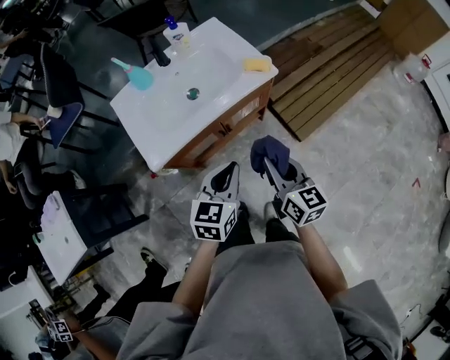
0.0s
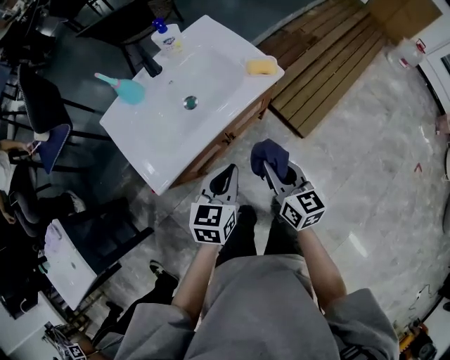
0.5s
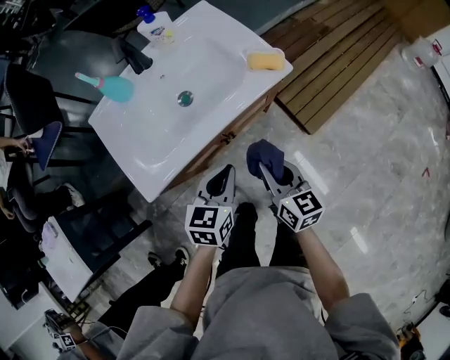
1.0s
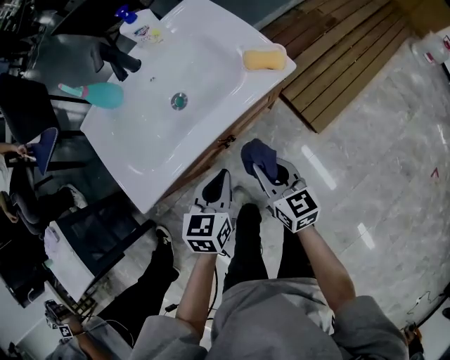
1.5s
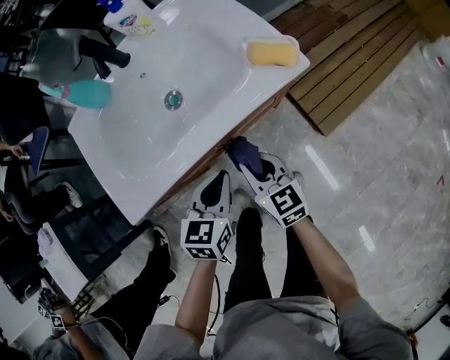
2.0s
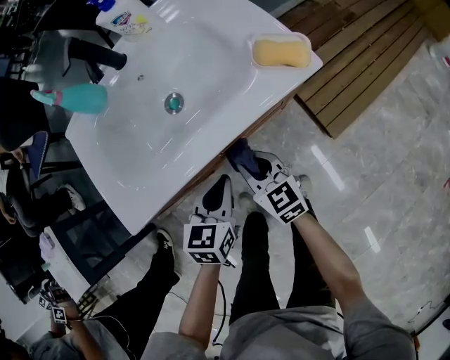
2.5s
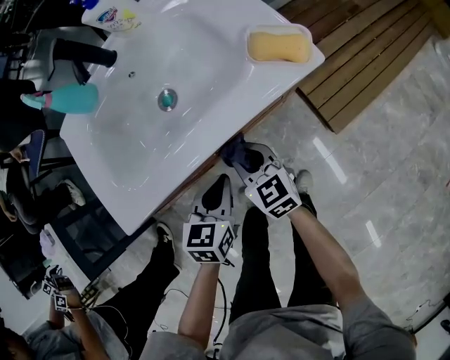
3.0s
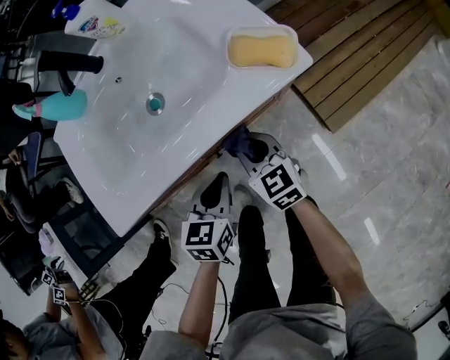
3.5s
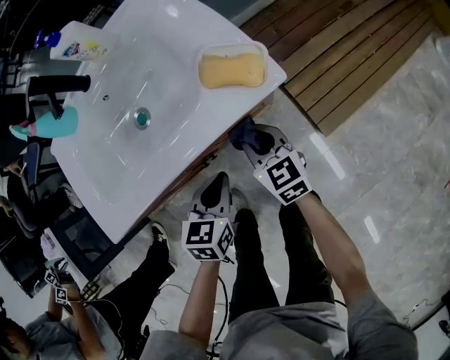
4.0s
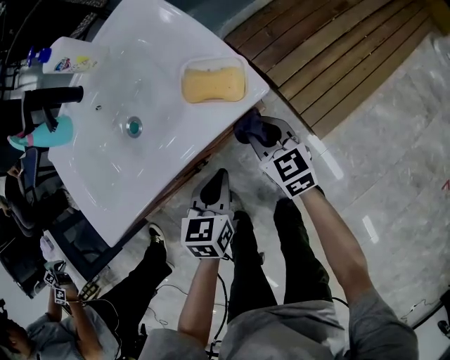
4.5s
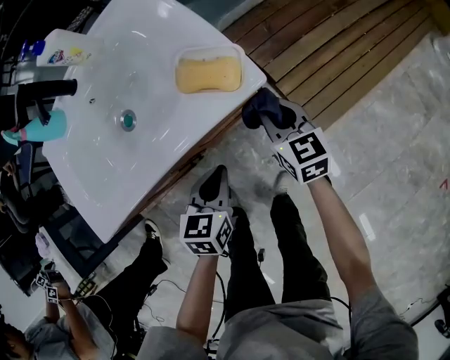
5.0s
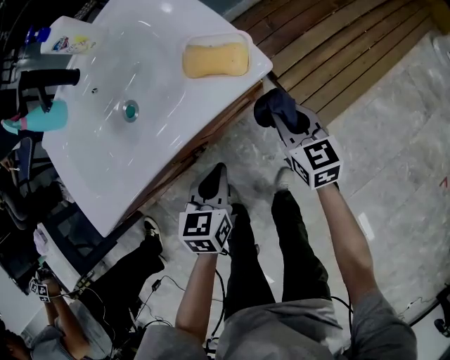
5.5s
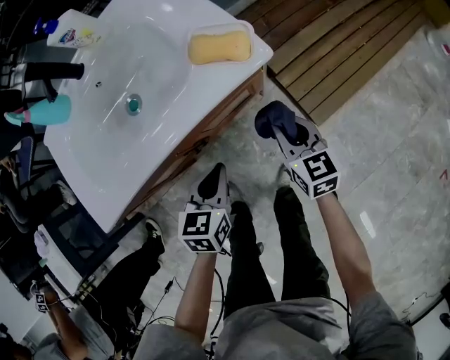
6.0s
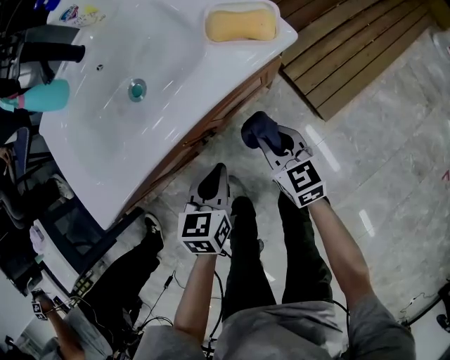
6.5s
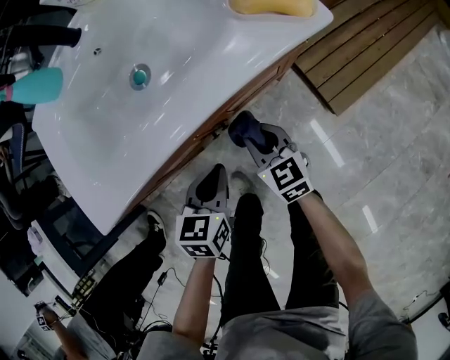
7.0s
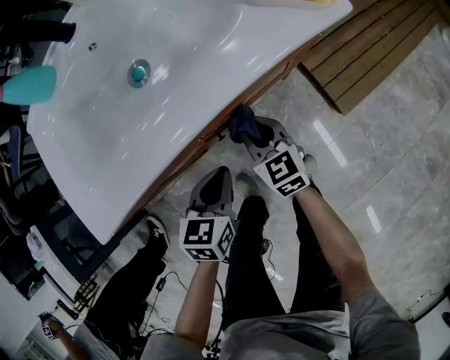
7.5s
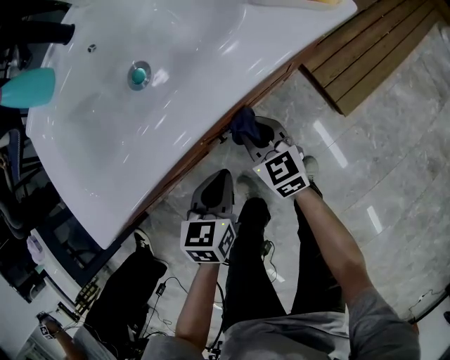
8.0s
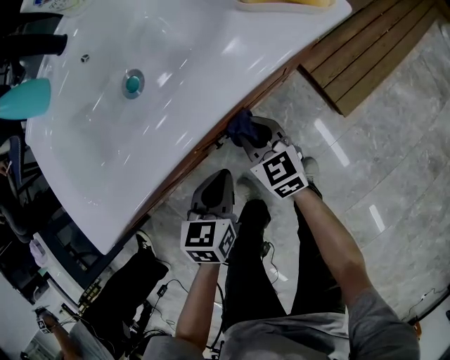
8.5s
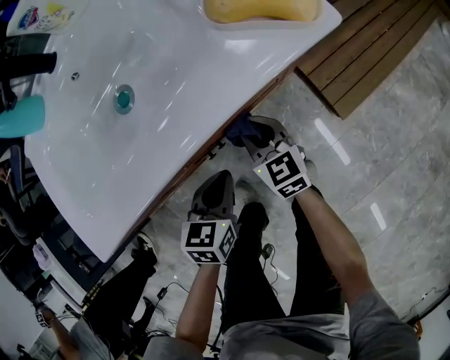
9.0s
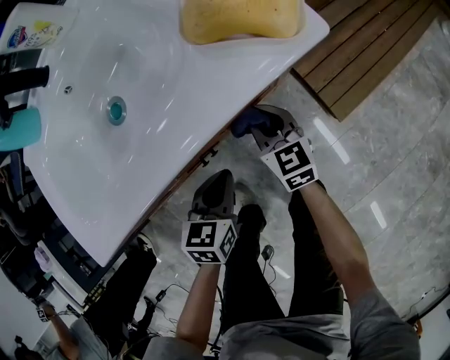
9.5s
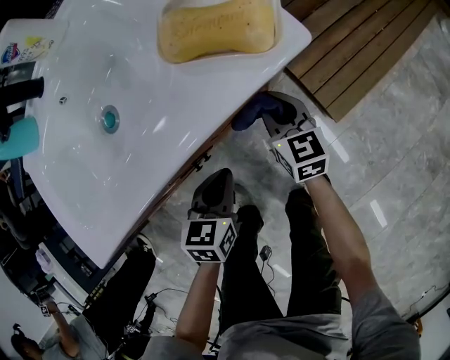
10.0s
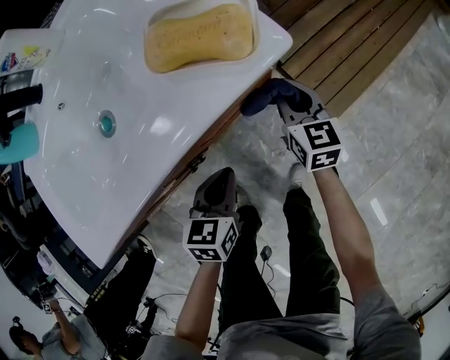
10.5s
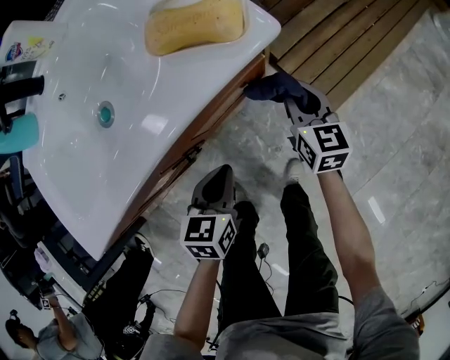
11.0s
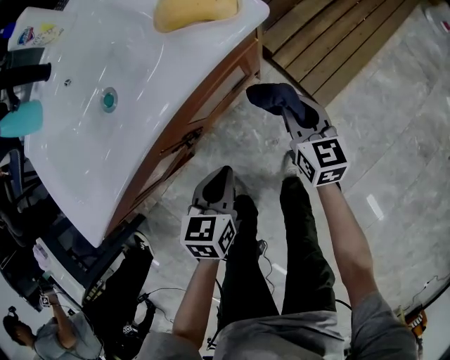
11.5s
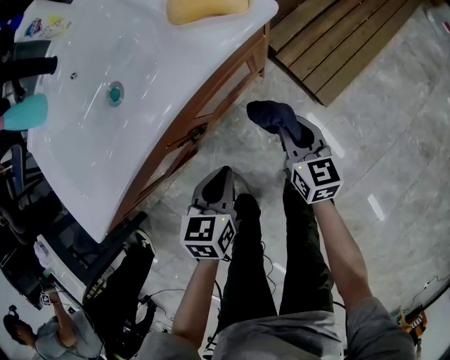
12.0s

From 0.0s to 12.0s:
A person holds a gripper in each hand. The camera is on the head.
From 0.0s to 2.0s: The grippers both shift downward and forward by some 25 cm. The right gripper rotates about 20 degrees.
From 2.0s to 4.0s: The left gripper goes about 10 cm downward and to the right. The right gripper is displaced to the right, forward and downward by roughly 15 cm.
From 4.0s to 6.0s: The right gripper travels to the right by roughly 10 cm.
From 6.0s to 8.0s: The right gripper shifts roughly 25 cm to the left and downward; the left gripper travels to the left and downward by some 15 cm.
From 8.0s to 10.0s: The right gripper moves to the right and forward, roughly 20 cm. The left gripper goes roughly 10 cm to the right and forward.
From 10.0s to 12.0s: The left gripper shifts some 5 cm backward, while the right gripper goes about 15 cm backward and to the right.

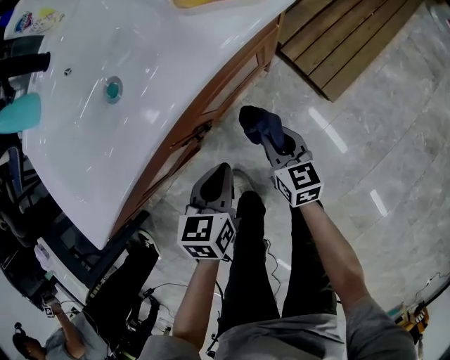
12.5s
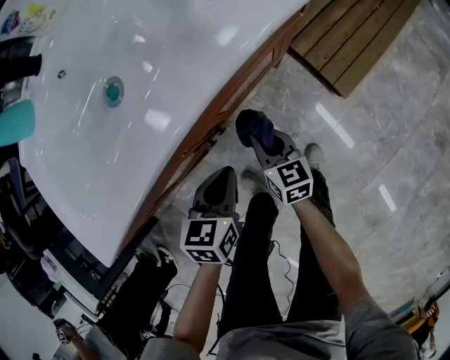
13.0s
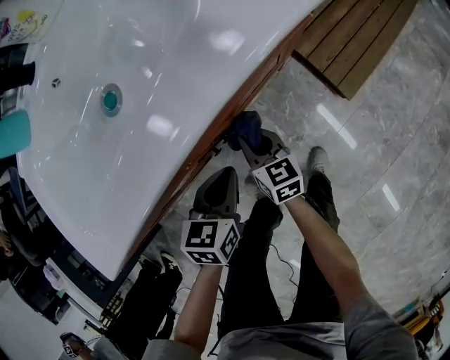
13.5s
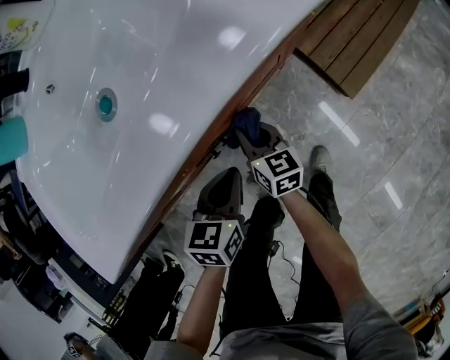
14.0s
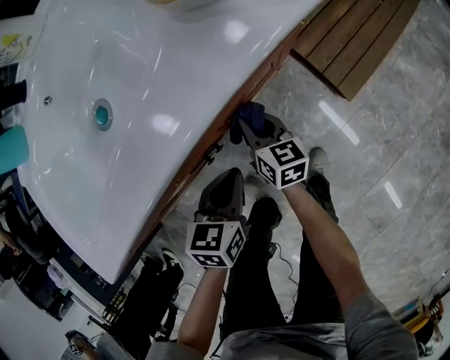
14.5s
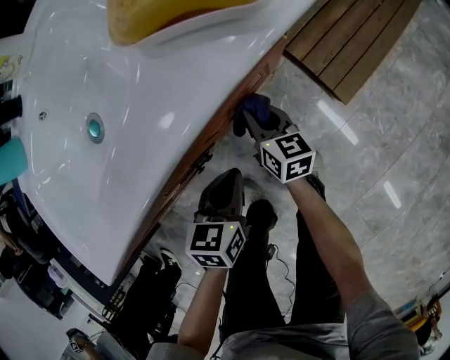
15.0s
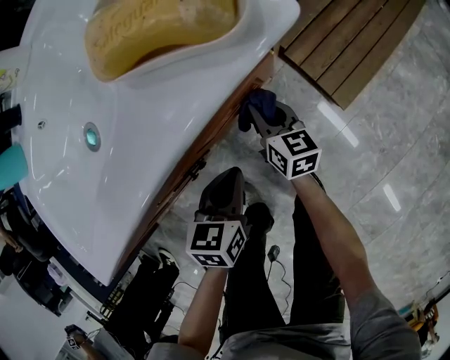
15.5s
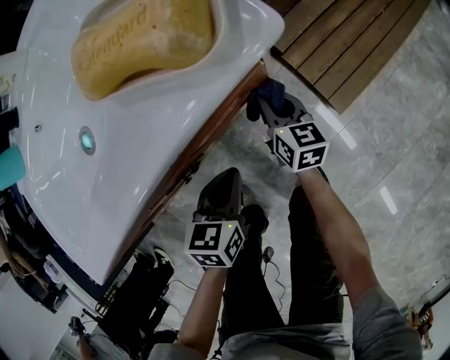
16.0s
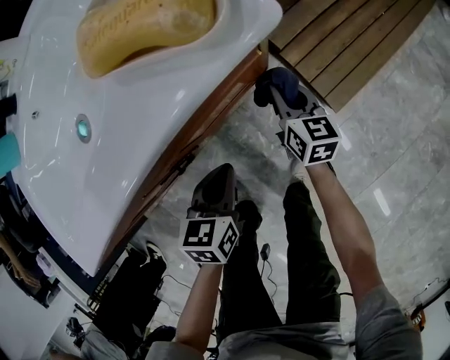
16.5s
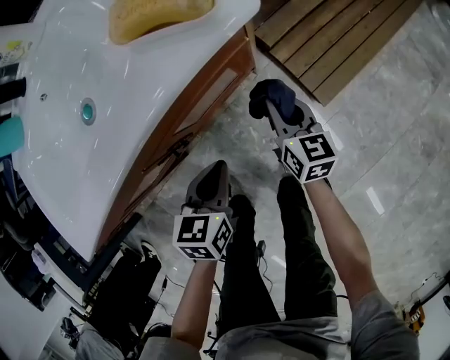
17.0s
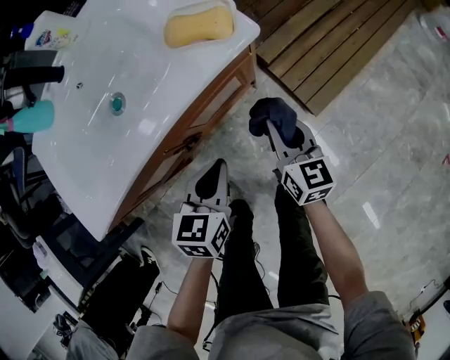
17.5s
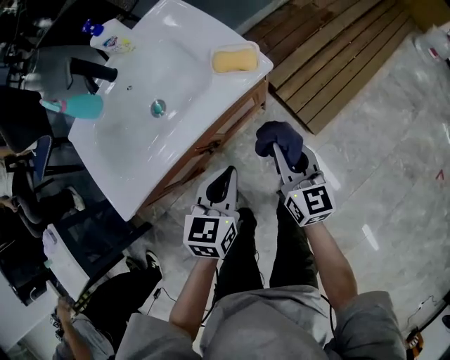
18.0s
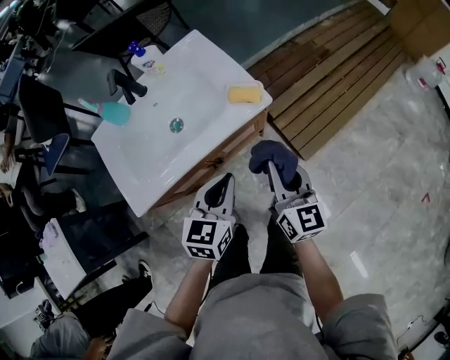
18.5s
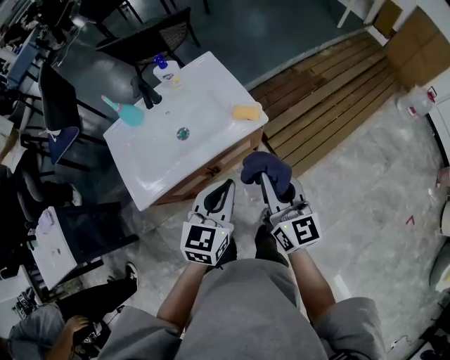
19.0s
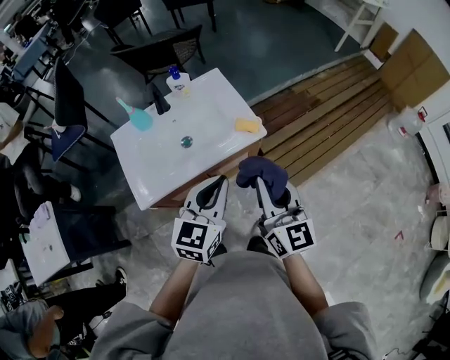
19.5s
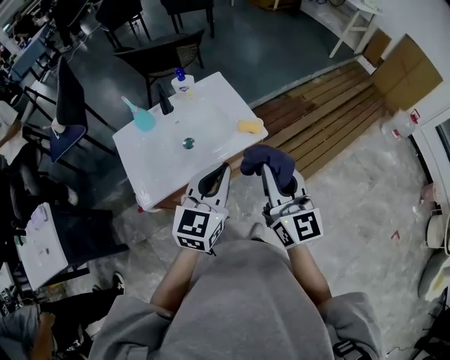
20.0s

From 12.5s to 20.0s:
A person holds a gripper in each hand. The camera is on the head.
From 12.5s to 14.5s: The left gripper goes approximately 5 cm downward, while the right gripper goes approximately 15 cm to the left, forward and downward.
From 14.5s to 16.5s: The left gripper shifts some 5 cm to the right, while the right gripper travels to the right and forward by roughly 20 cm.
From 16.5s to 18.0s: The left gripper travels upward by approximately 25 cm. Meanwhile the right gripper travels upward and backward by about 35 cm.
From 18.0s to 20.0s: The grippers both shift upward by some 35 cm. The right gripper turns by roughly 20 degrees. Meanwhile the left gripper changes its angle by some 30 degrees.

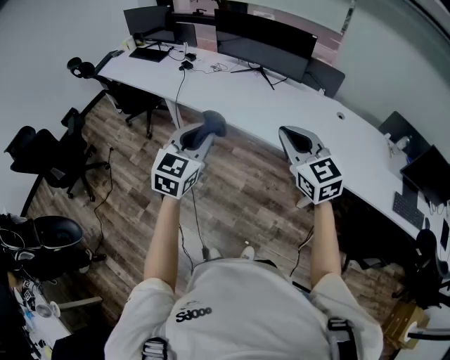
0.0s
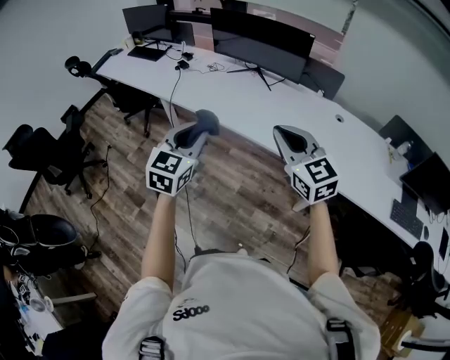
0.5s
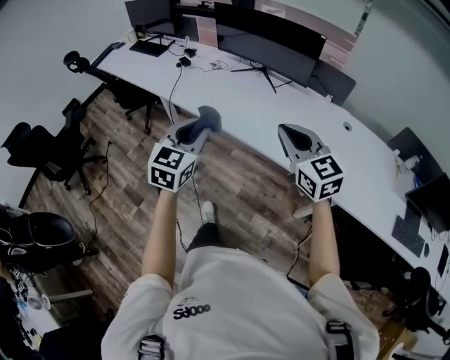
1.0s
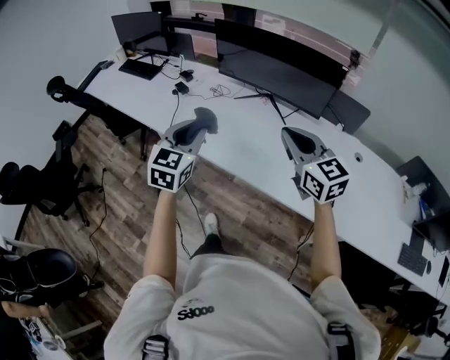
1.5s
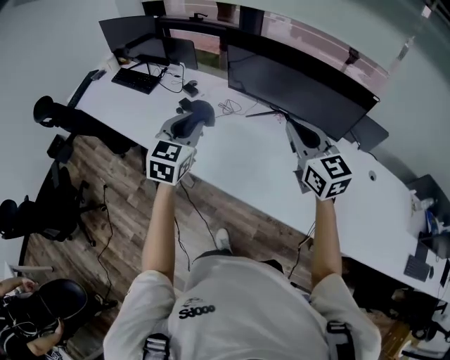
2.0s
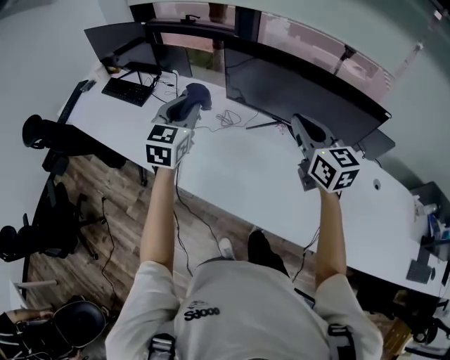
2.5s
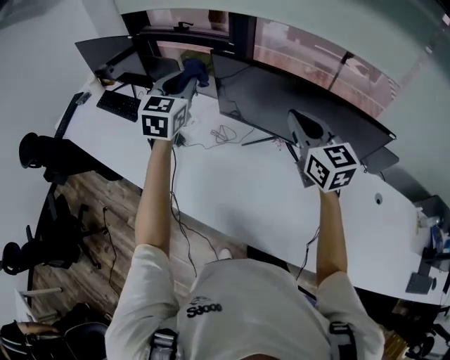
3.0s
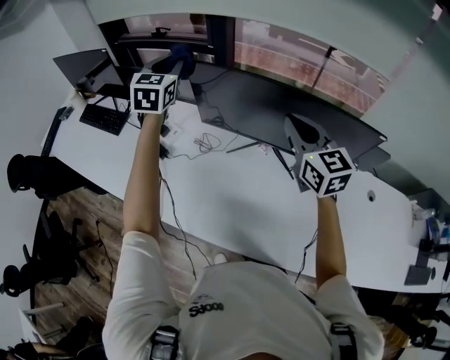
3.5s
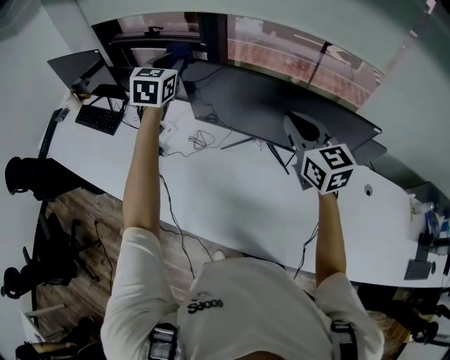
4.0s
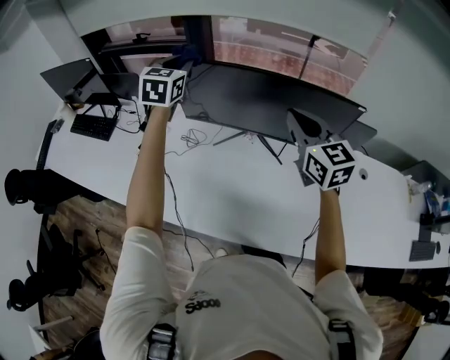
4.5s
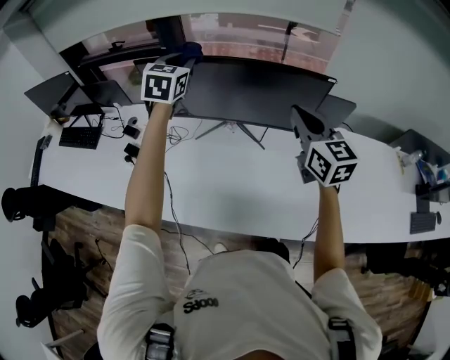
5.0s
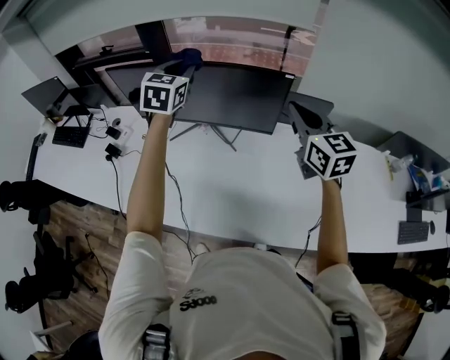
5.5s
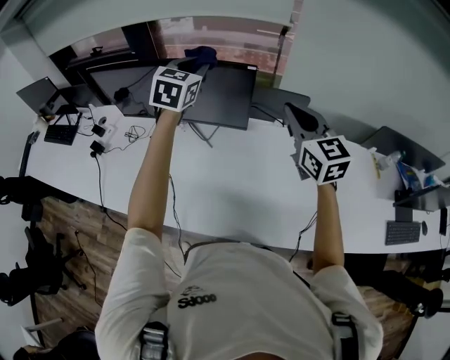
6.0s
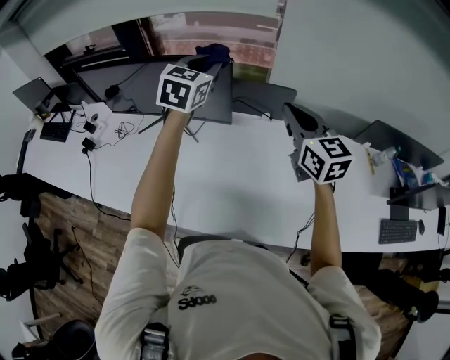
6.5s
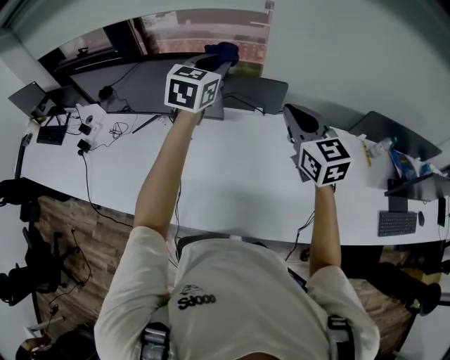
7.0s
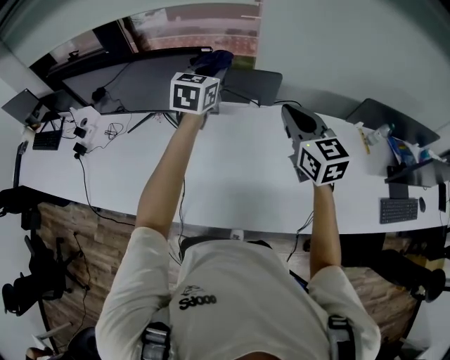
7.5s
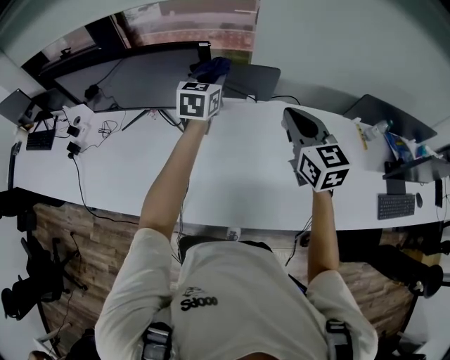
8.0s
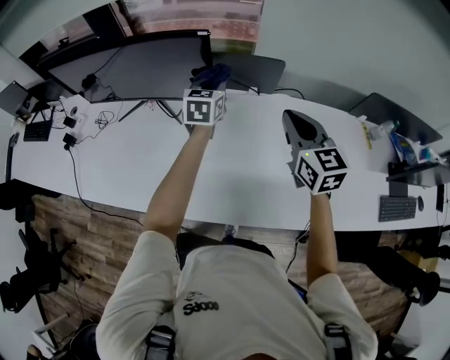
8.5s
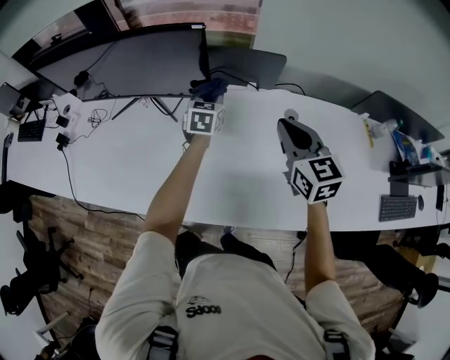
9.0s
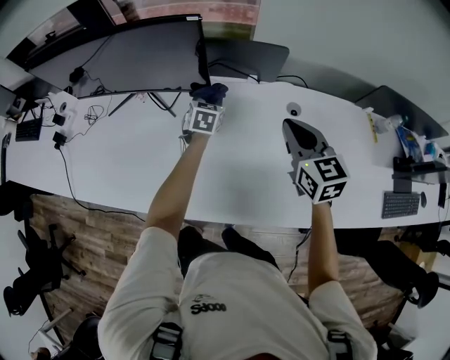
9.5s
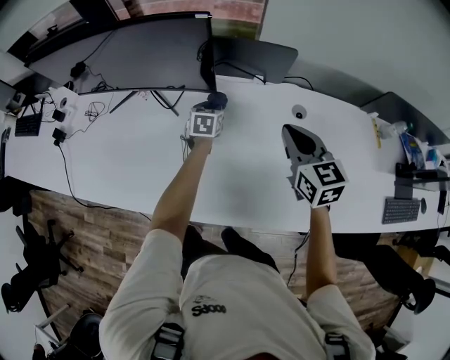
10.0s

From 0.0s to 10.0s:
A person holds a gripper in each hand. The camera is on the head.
From 0.0s to 2.0s: The two grippers travel together, forward, roughly 50 cm.
From 2.0s to 4.0s: The left gripper travels forward by about 40 cm. The right gripper is displaced forward and to the right by some 25 cm.
From 4.0s to 6.0s: The left gripper is displaced to the right by approximately 40 cm, while the right gripper heads to the right and backward, covering approximately 40 cm.
From 6.0s to 8.0s: The left gripper shifts approximately 20 cm to the right and downward; the right gripper goes about 15 cm to the right and downward.
From 8.0s to 10.0s: The left gripper is displaced downward by some 30 cm, and rotates roughly 30 degrees. Meanwhile the right gripper is displaced downward by roughly 15 cm.
